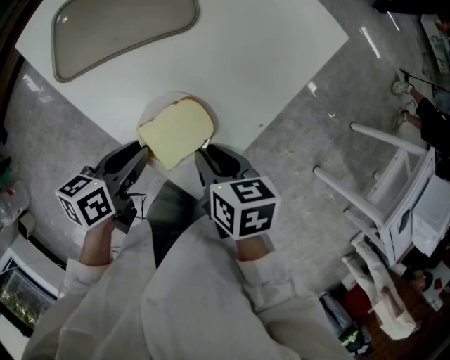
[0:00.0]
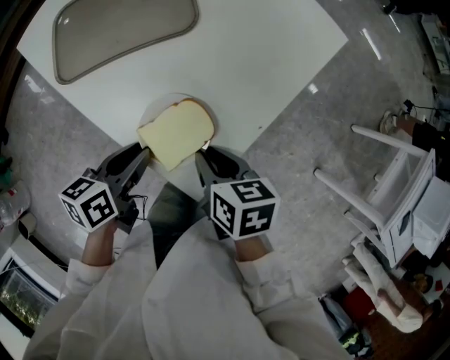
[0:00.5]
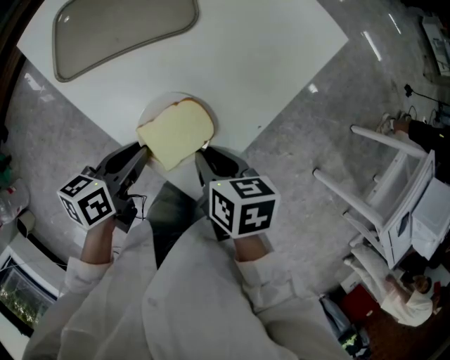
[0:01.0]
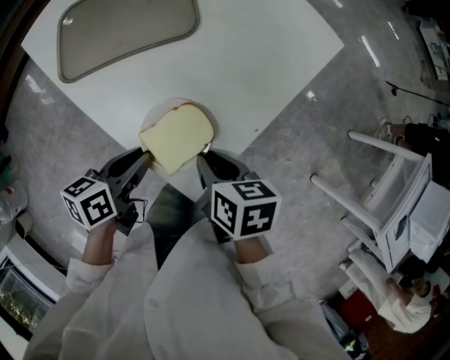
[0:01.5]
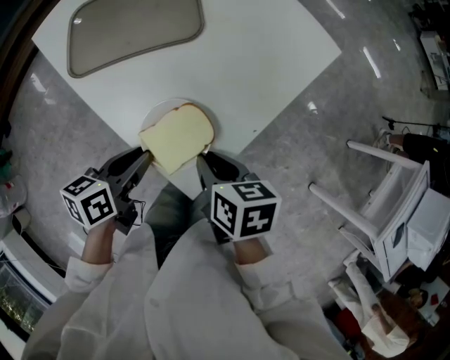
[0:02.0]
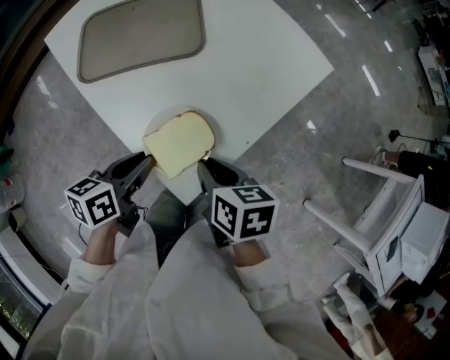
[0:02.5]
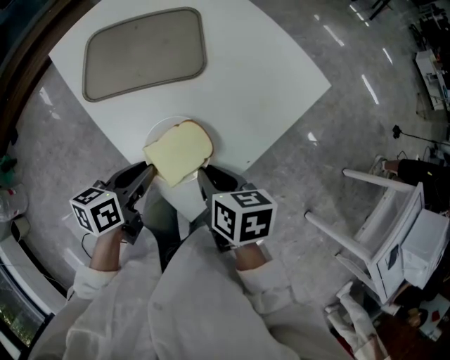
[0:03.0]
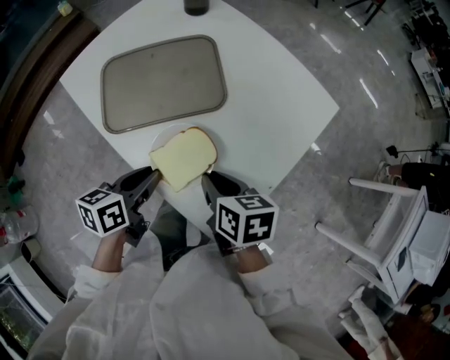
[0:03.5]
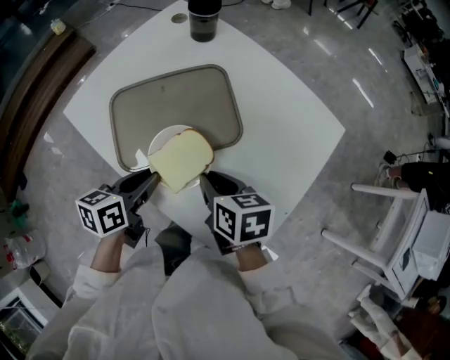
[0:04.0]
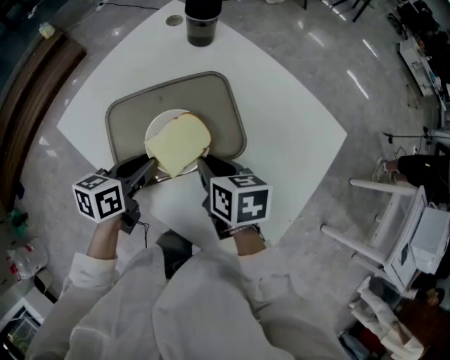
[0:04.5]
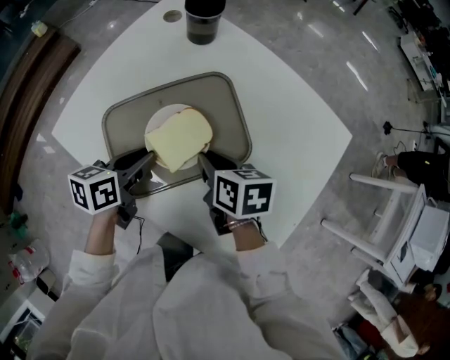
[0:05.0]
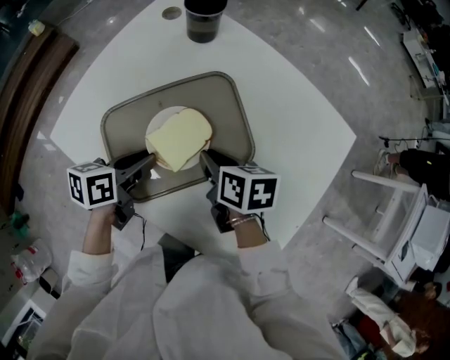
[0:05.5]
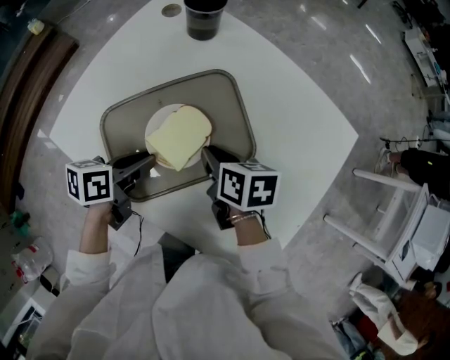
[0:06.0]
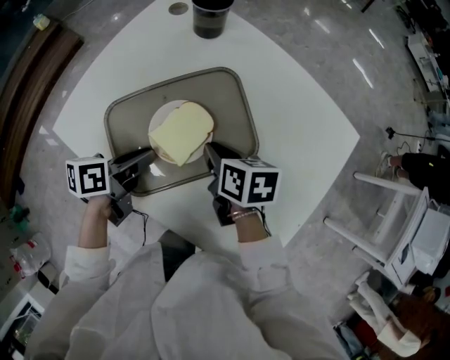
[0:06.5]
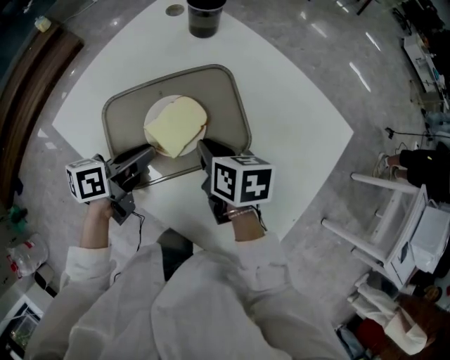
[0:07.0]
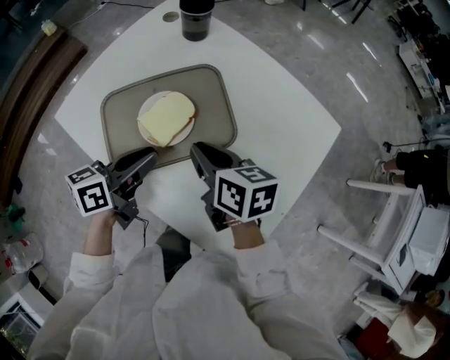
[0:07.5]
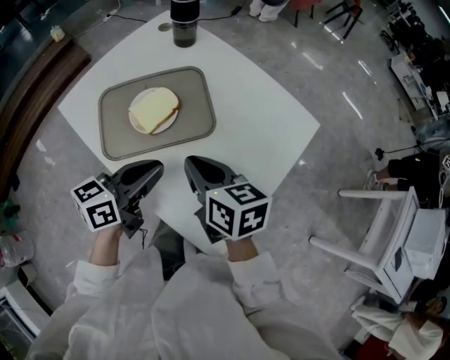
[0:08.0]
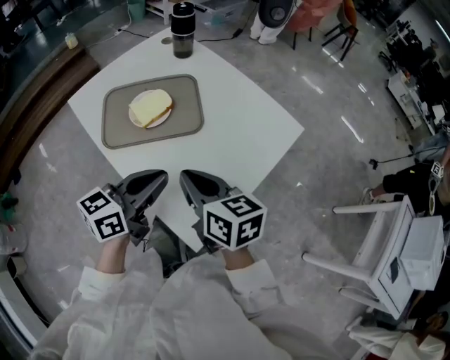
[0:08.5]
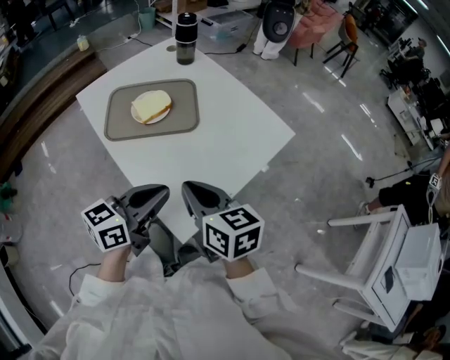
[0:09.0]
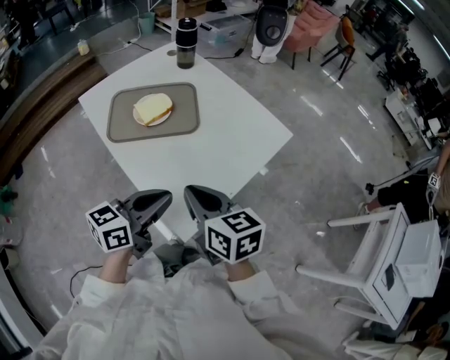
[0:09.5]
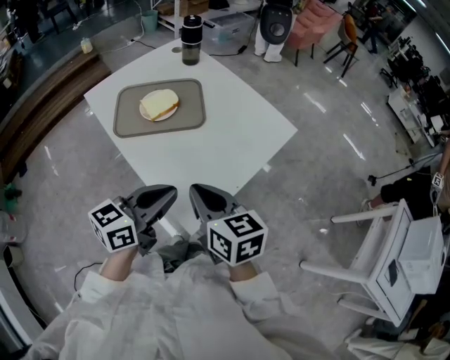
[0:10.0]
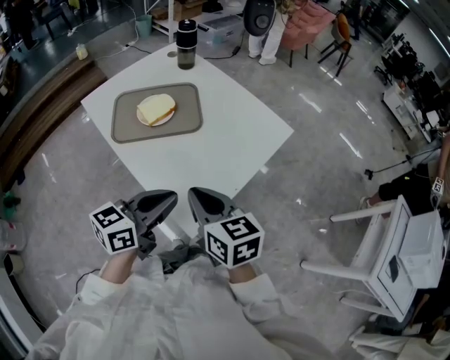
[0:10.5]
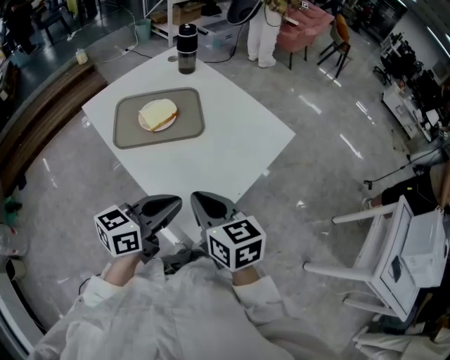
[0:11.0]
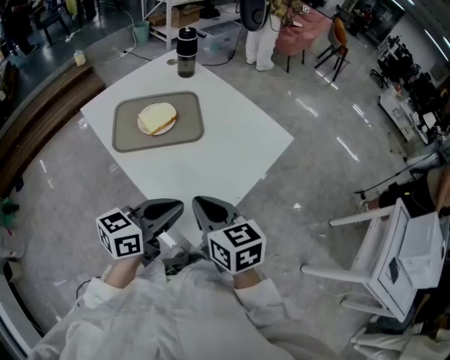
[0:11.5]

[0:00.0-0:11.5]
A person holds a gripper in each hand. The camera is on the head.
0:00.0 to 0:02.0: The grippers move only a little.
0:02.0 to 0:04.0: Both grippers move forward and to the left, roughly 25 cm.
0:04.0 to 0:06.0: The left gripper goes about 10 cm forward. The right gripper heads forward and downward, covering approximately 15 cm.
0:06.0 to 0:07.5: The right gripper travels upward by some 10 cm. Meanwhile the left gripper goes about 10 cm upward and to the right, and changes its angle by some 20 degrees.
0:07.5 to 0:09.5: Both grippers travel together backward and to the right, about 30 cm. The right gripper rotates roughly 20 degrees.
0:09.5 to 0:11.5: The grippers move only a little.

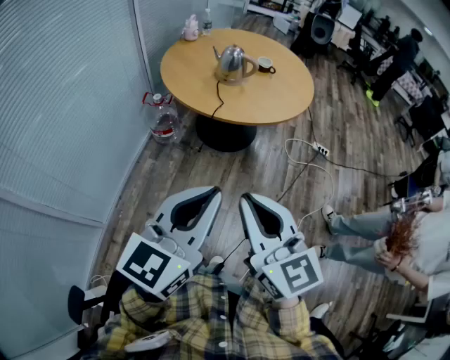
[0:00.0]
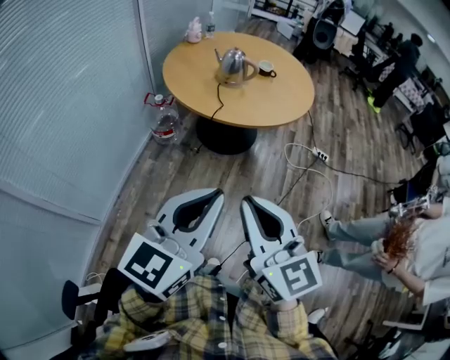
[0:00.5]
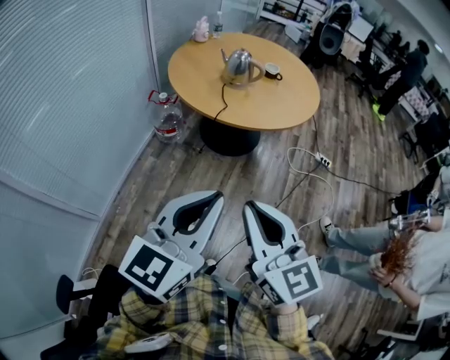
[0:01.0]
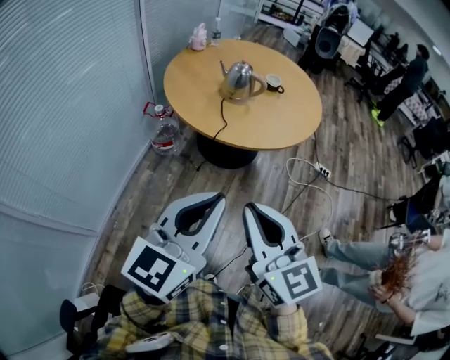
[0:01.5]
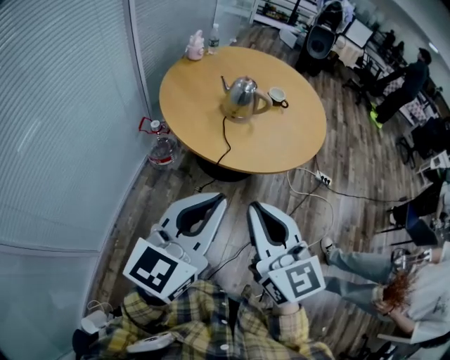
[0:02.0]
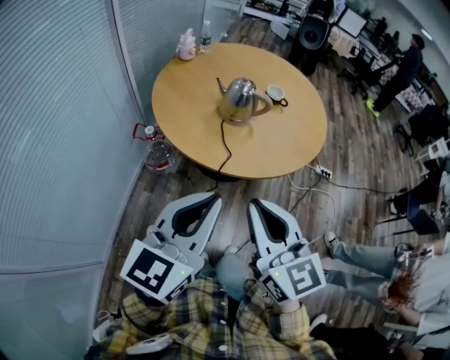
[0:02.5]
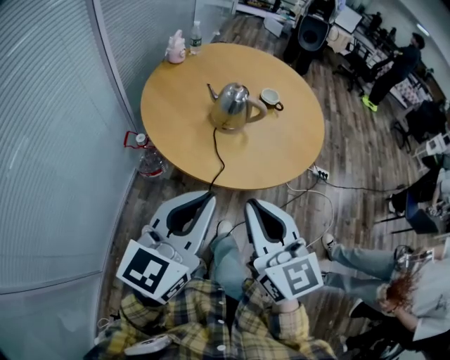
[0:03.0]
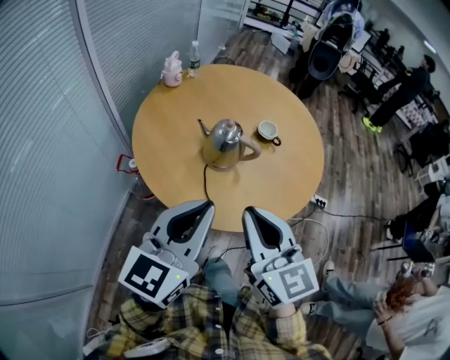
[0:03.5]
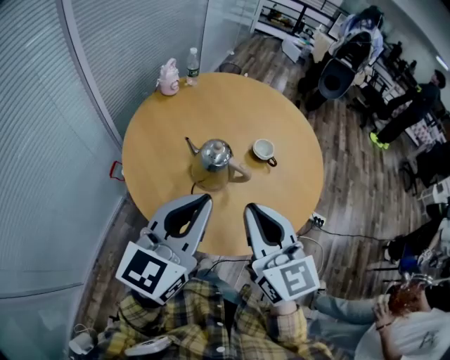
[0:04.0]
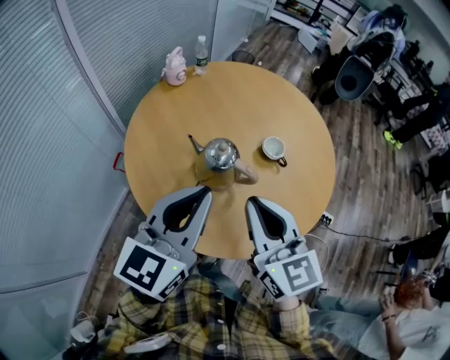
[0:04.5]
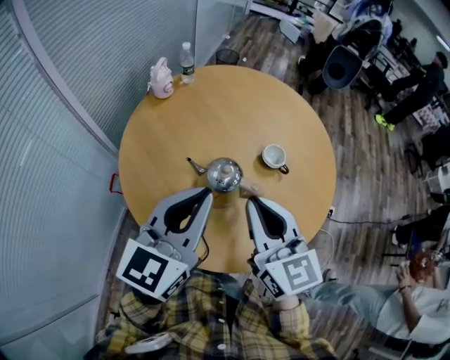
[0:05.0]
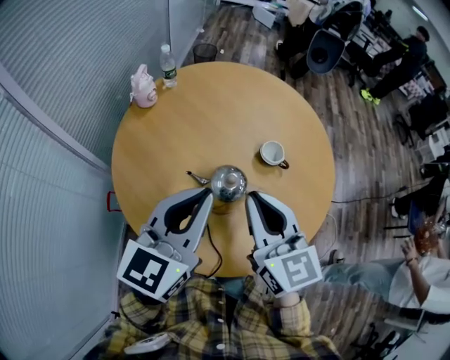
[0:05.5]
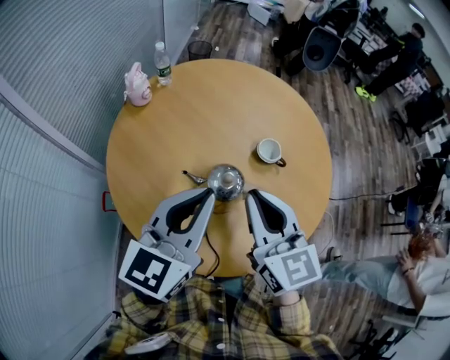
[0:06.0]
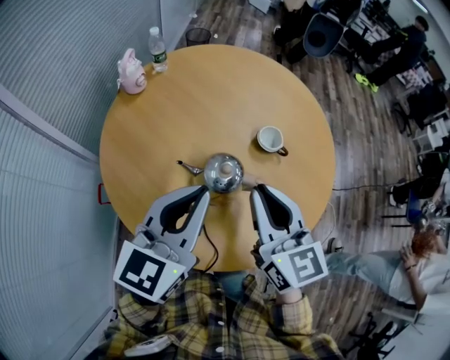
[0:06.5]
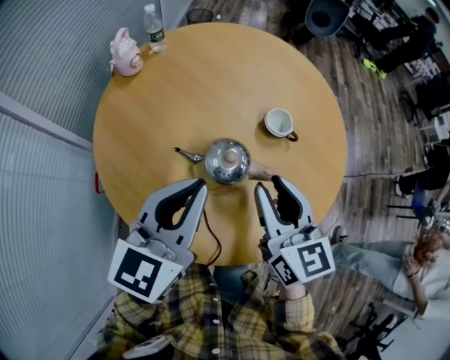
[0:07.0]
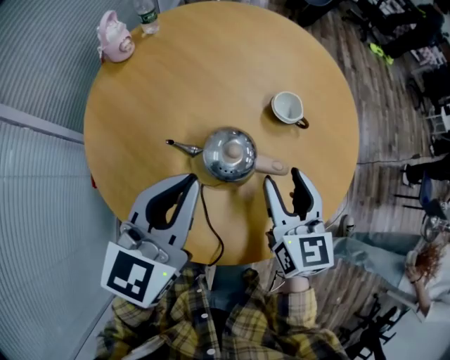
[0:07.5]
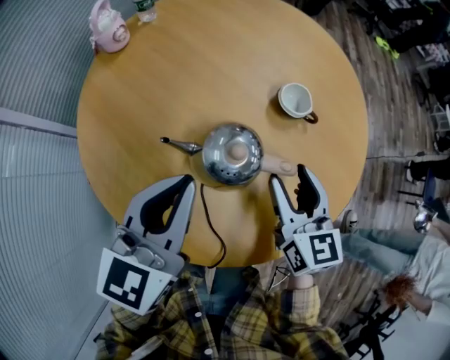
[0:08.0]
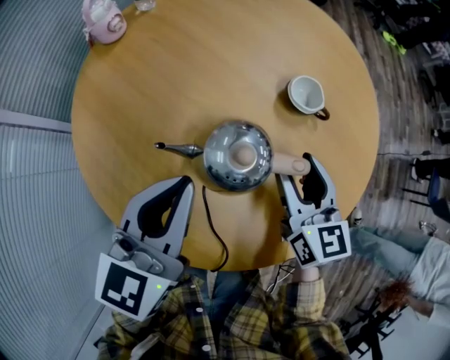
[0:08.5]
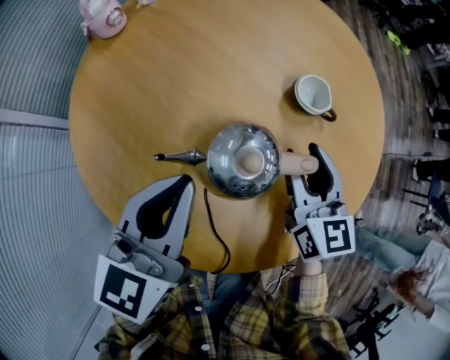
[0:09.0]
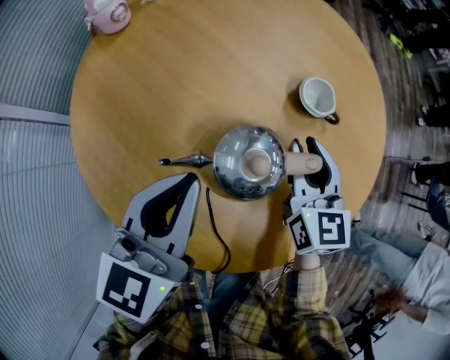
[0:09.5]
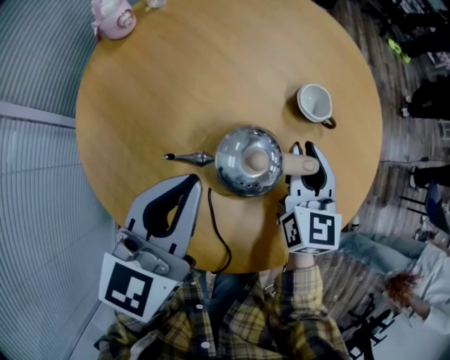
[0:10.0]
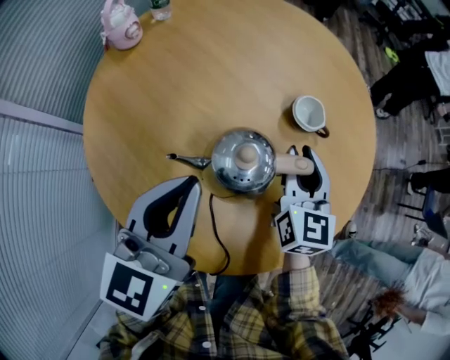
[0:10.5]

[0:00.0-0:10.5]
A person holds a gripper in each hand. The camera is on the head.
0:00.0 to 0:02.0: The two grippers go some 20 cm forward.
0:02.0 to 0:04.0: The two grippers go some 35 cm forward.
0:04.0 to 0:06.5: Both grippers travel together forward and downward, about 15 cm.
0:06.5 to 0:08.5: Both grippers travel together downward, approximately 15 cm. The right gripper opens its fingers.
0:08.5 to 0:10.5: The right gripper closes its fingers.

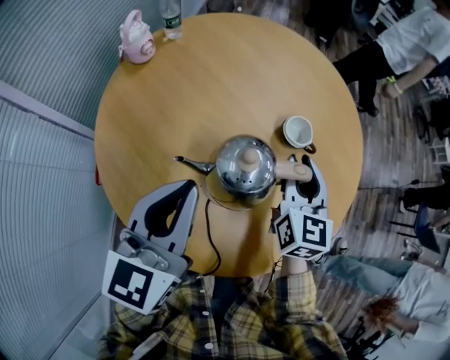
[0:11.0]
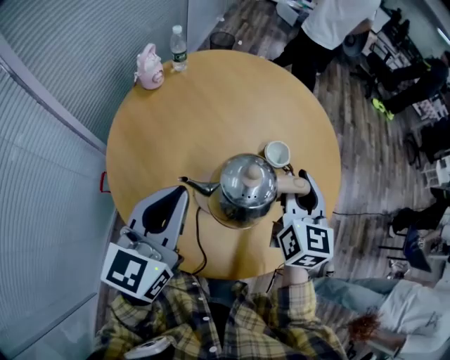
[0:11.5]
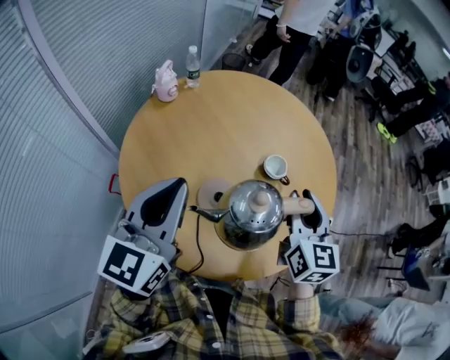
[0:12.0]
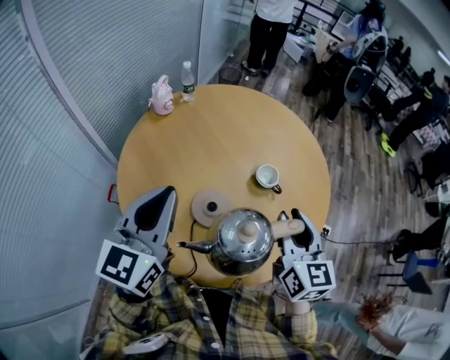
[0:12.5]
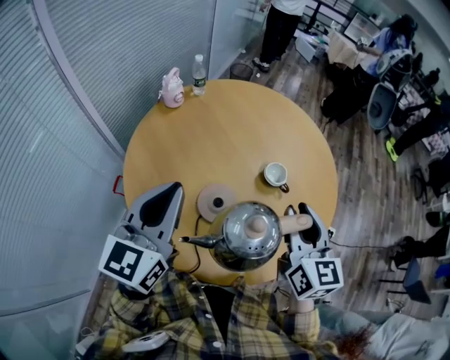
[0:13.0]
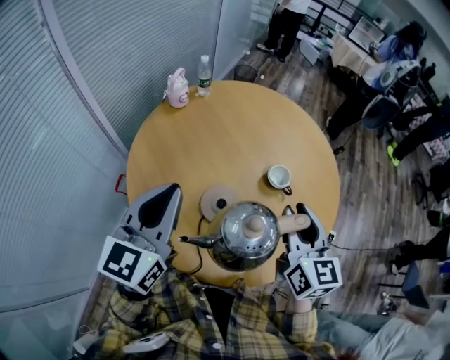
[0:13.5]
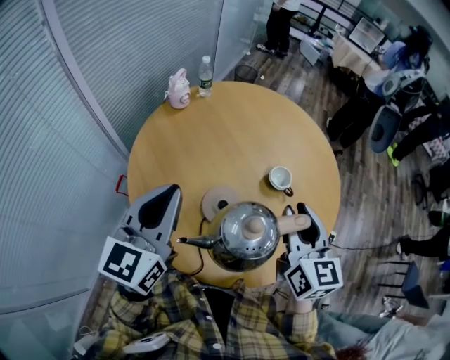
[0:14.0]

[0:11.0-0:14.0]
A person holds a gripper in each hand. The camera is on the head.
0:11.0 to 0:12.5: The grippers both shift upward by approximately 15 cm.
0:12.5 to 0:14.0: The left gripper moves backward, approximately 5 cm.

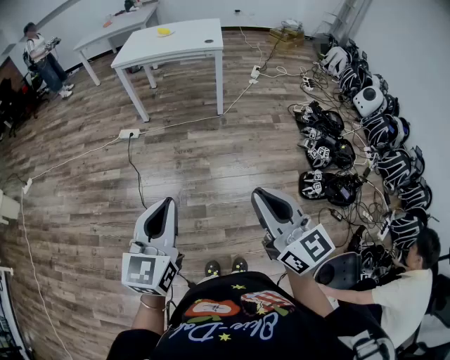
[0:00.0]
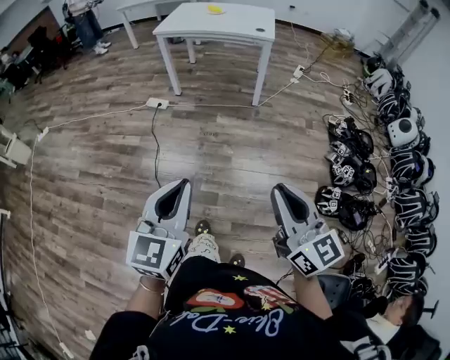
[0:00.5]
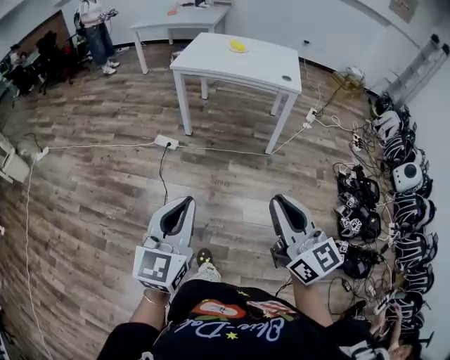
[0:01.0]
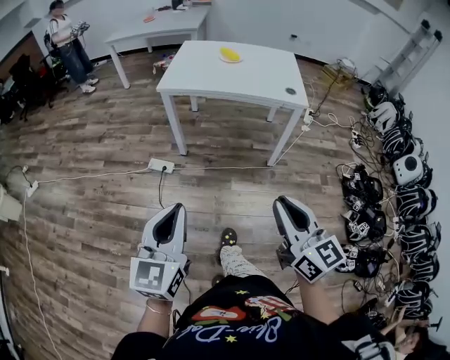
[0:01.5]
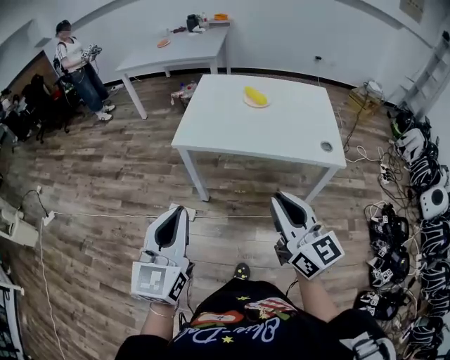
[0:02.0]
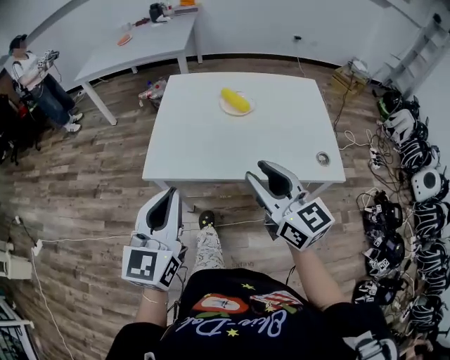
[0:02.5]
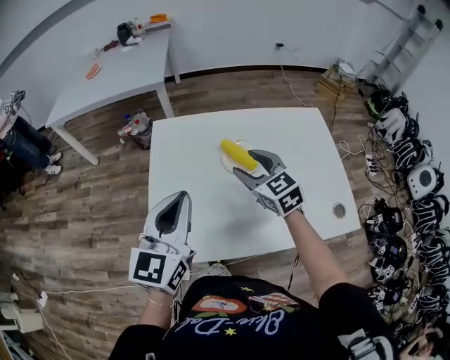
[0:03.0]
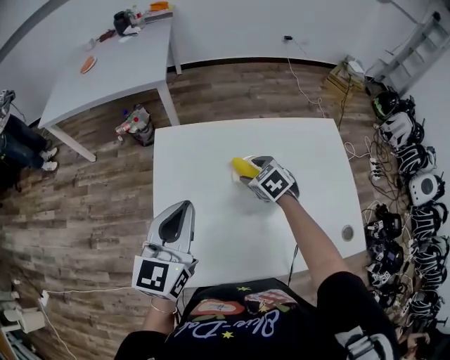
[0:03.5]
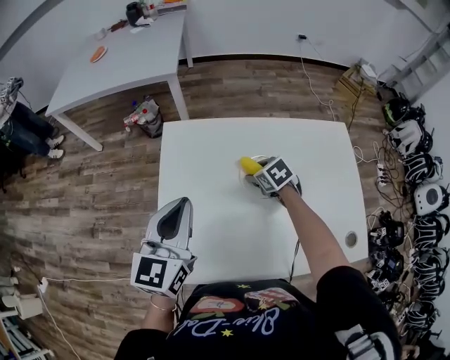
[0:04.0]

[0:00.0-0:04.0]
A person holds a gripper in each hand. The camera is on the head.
0:00.0 to 0:02.0: The two grippers travel together, forward, about 80 cm.
0:02.0 to 0:04.0: The two grippers travel together, forward, roughly 70 cm. The right gripper tips its fingers downward by approximately 60 degrees, and opens.
